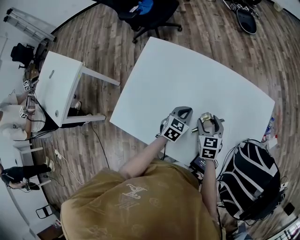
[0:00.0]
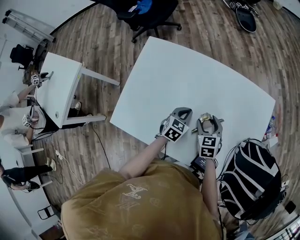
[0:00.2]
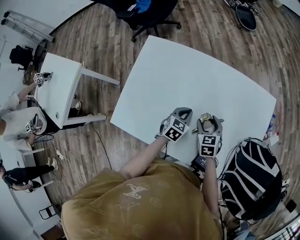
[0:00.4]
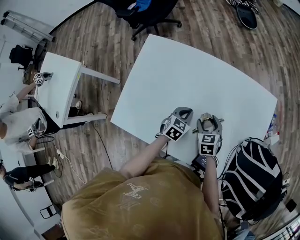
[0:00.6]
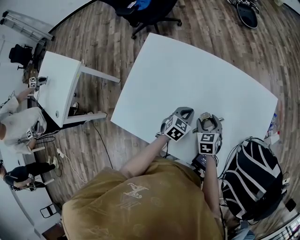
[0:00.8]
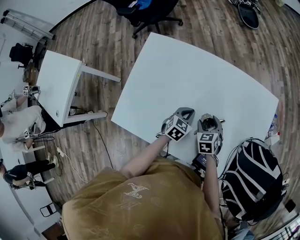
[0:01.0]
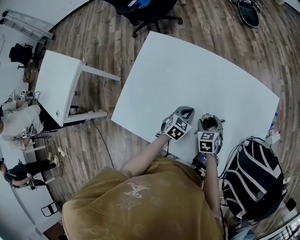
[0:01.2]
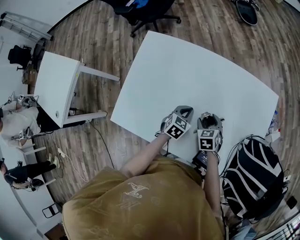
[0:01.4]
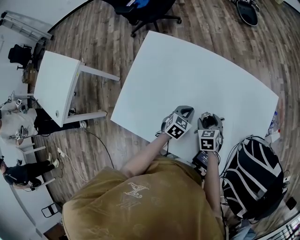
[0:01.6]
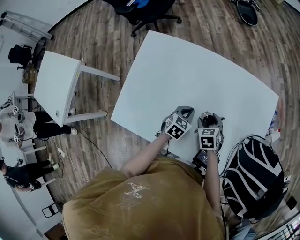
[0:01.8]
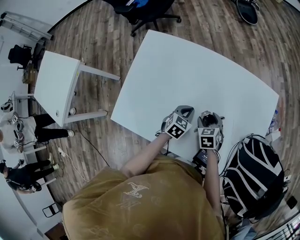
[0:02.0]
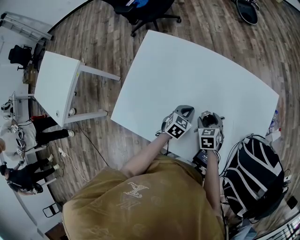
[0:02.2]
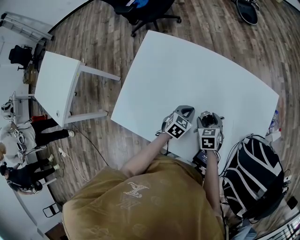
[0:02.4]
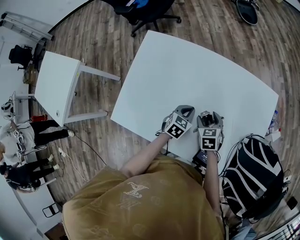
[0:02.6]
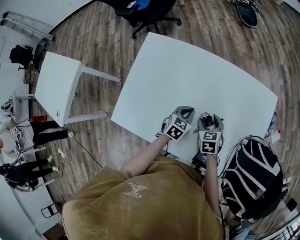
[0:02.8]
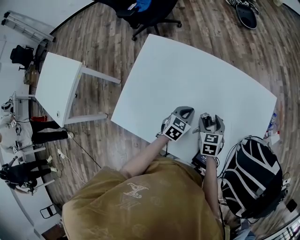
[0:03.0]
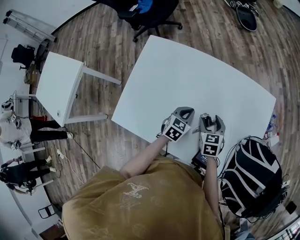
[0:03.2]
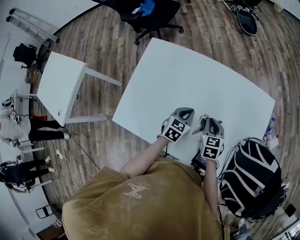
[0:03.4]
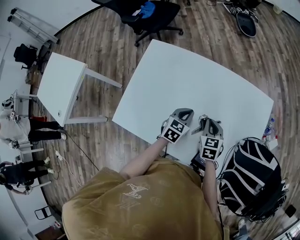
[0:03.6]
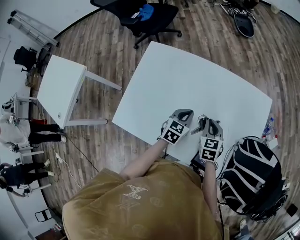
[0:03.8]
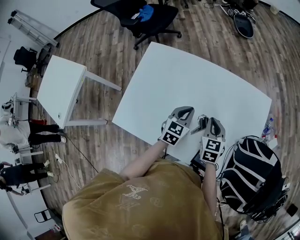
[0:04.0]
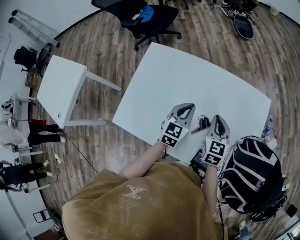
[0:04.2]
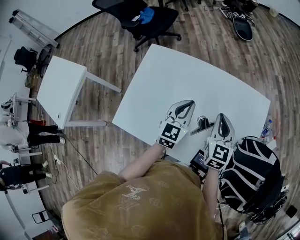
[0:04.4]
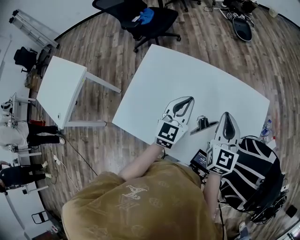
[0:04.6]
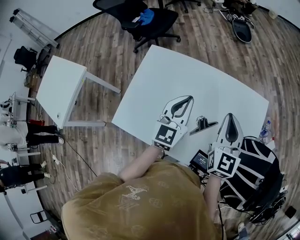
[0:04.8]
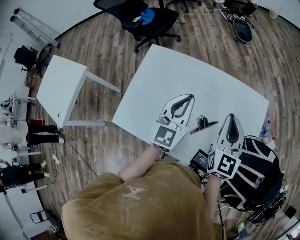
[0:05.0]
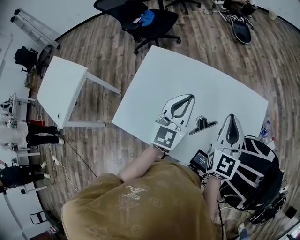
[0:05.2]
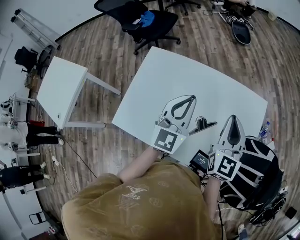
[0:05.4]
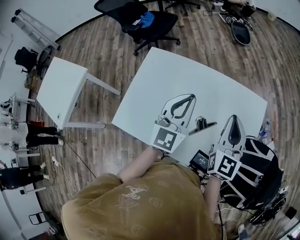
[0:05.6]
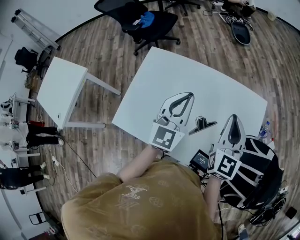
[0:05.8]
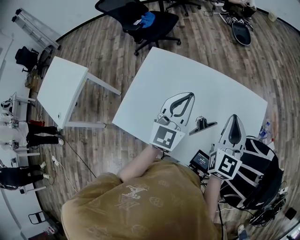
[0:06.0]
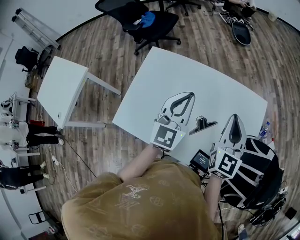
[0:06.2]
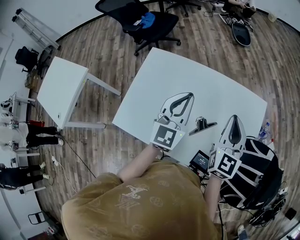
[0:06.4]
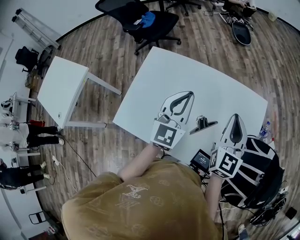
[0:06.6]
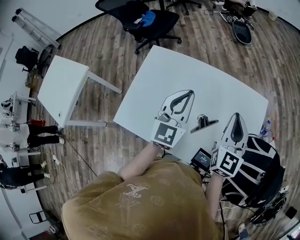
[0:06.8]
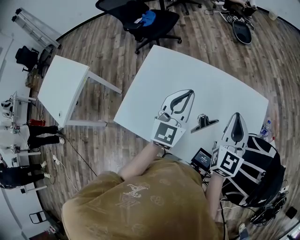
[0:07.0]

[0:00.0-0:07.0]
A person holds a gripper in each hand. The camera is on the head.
0:00.0 to 0:01.4: The right gripper moves downward, approximately 5 cm.
0:01.4 to 0:02.8: The grippers stay close to where they were, moving slightly.
0:02.8 to 0:04.2: Both grippers travel together upward, about 15 cm. The left gripper rotates approximately 20 degrees. The right gripper turns by about 30 degrees, and closes.
0:04.2 to 0:05.6: Both grippers travel together upward, some 15 cm. The left gripper swivels roughly 20 degrees. The right gripper swivels some 20 degrees.
0:05.6 to 0:07.0: The grippers stay close to where they were, moving slightly.

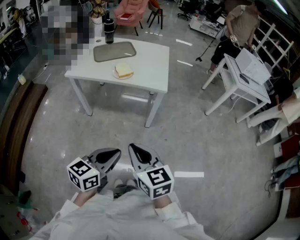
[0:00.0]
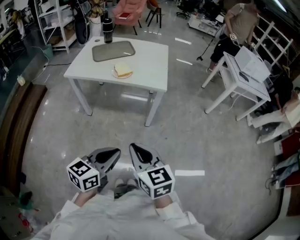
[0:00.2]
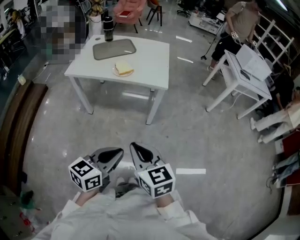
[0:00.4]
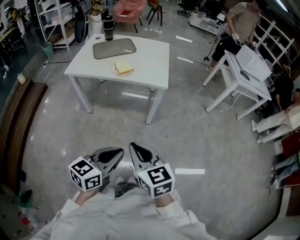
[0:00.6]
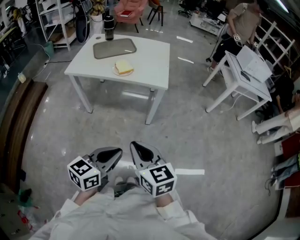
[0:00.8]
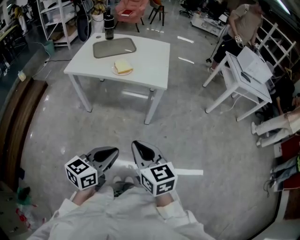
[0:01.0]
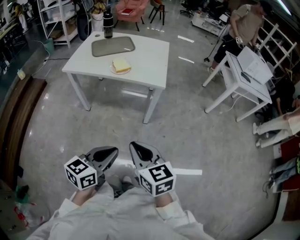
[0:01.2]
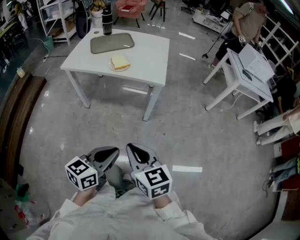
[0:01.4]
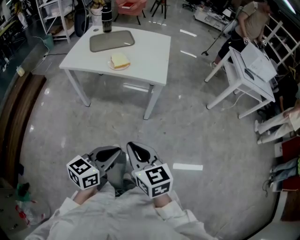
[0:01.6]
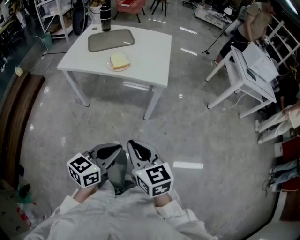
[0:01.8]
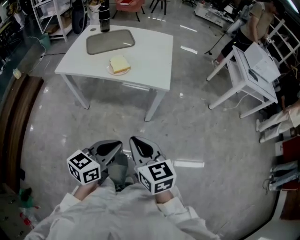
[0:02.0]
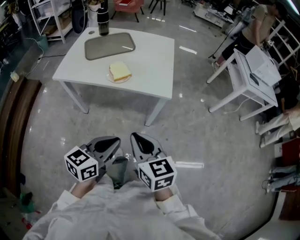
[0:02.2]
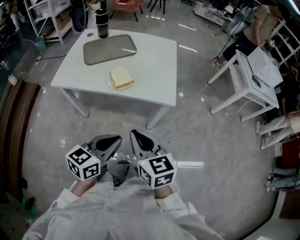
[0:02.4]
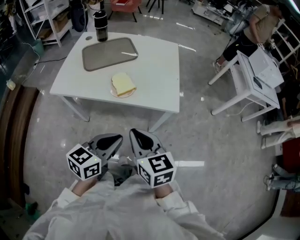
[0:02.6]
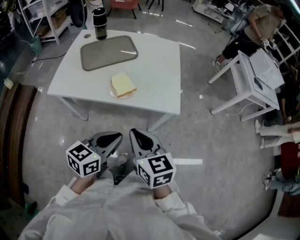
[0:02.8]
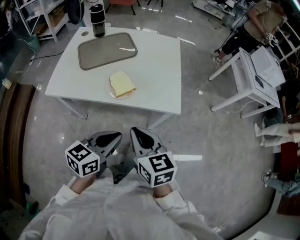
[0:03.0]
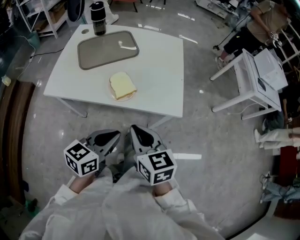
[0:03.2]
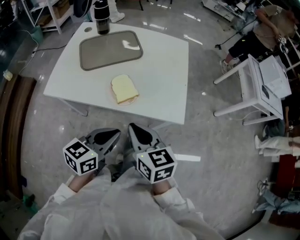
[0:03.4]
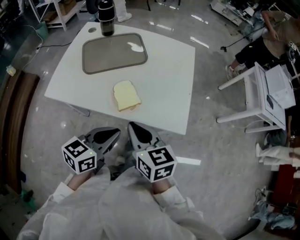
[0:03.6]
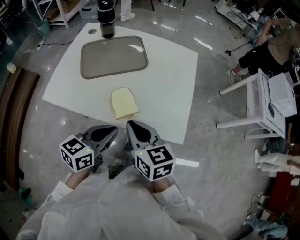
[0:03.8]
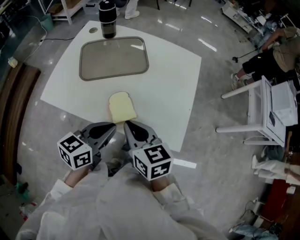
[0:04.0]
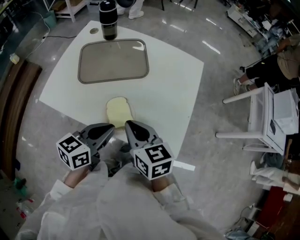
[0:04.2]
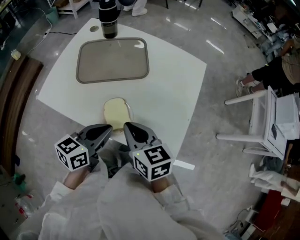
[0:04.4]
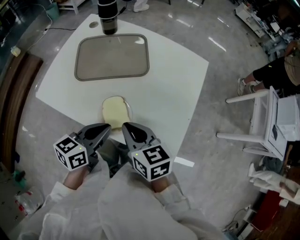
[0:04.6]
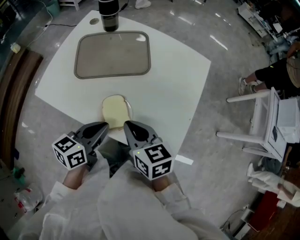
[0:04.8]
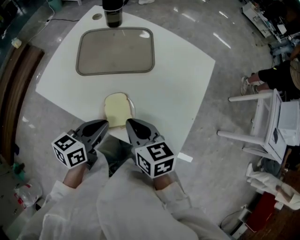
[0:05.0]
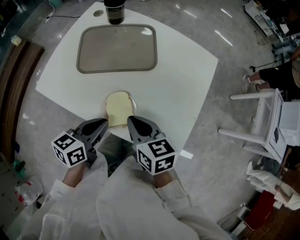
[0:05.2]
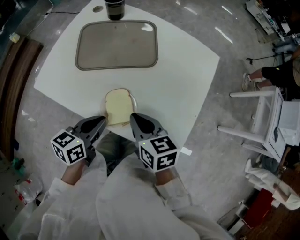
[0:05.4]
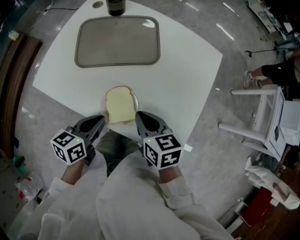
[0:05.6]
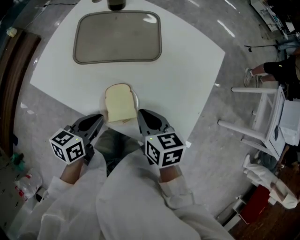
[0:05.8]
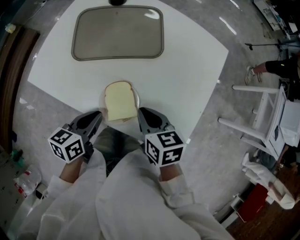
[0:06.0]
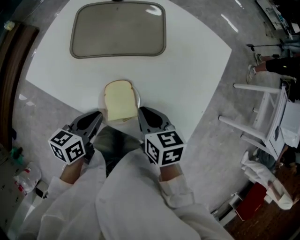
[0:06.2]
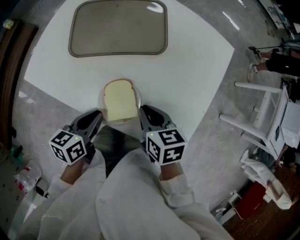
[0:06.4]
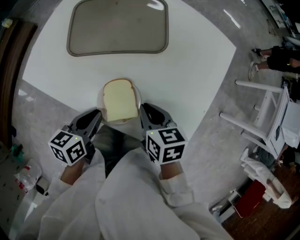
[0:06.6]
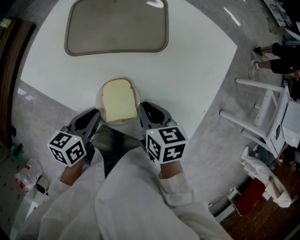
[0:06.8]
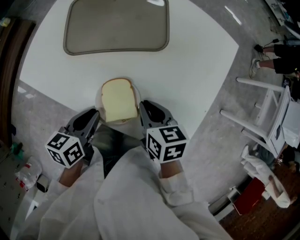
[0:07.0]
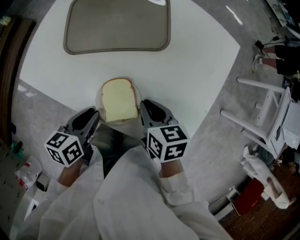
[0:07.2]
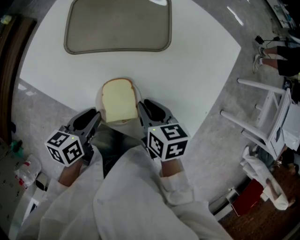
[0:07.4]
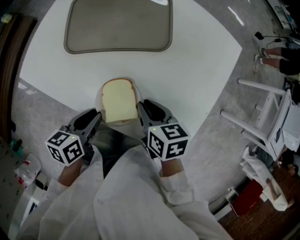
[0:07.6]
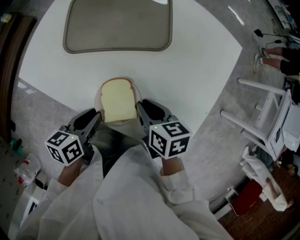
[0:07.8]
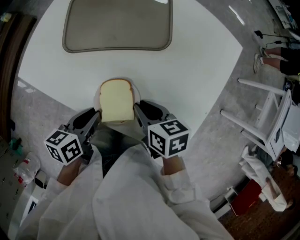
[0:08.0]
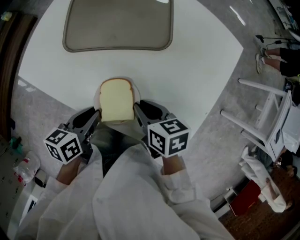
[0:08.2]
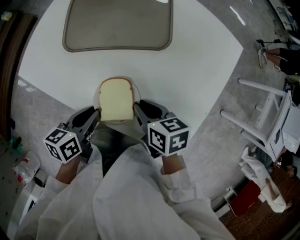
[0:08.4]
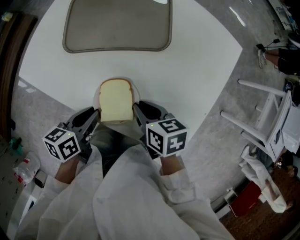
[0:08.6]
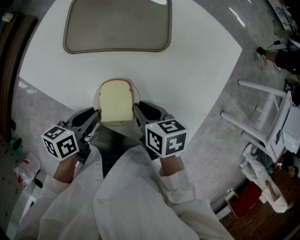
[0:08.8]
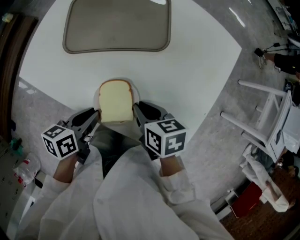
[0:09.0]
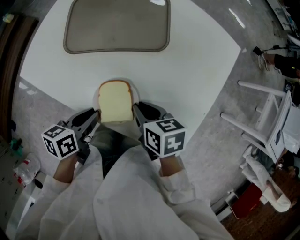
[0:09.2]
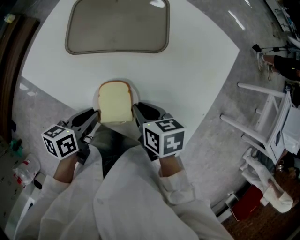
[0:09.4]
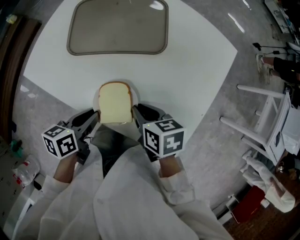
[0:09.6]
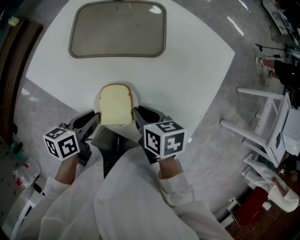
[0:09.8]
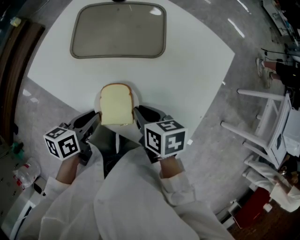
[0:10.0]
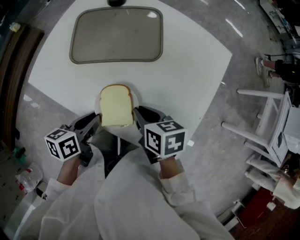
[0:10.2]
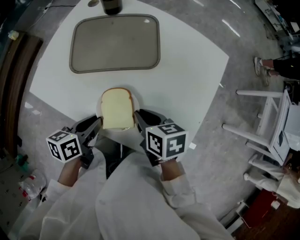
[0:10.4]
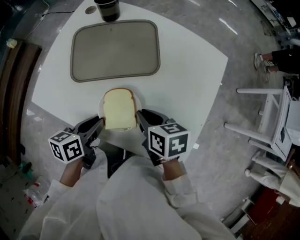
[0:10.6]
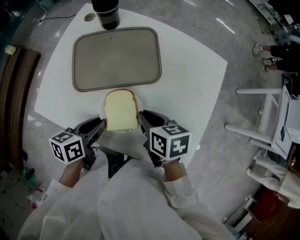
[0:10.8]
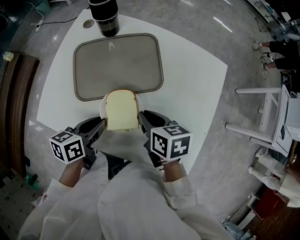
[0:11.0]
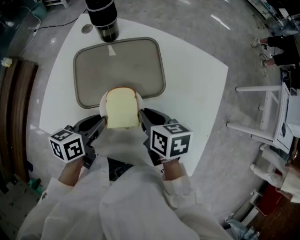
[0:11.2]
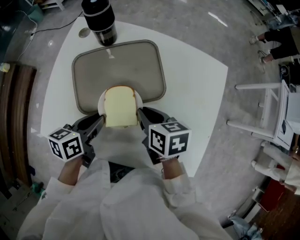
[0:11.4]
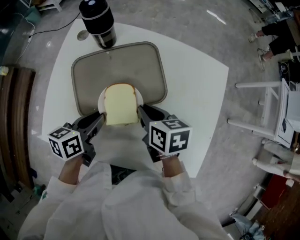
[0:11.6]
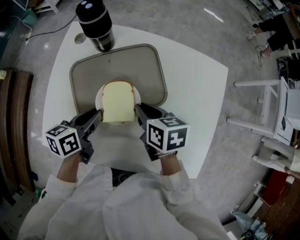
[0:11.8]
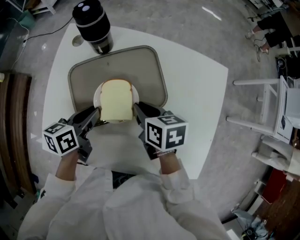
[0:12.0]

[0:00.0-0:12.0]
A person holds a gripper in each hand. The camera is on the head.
0:00.0 to 0:01.6: The right gripper changes place by about 5 cm, while the left gripper moves roughly 5 cm.
0:01.6 to 0:03.0: Both grippers move forward and to the left, about 30 cm.
0:03.0 to 0:04.4: Both grippers travel together forward, roughly 20 cm. The right gripper rotates roughly 20 degrees.
0:04.4 to 0:06.0: The left gripper goes roughly 10 cm downward and to the left. Meanwhile the right gripper shifts roughly 10 cm downward.
0:06.0 to 0:10.4: The grippers stay close to where they were, moving slightly.
0:10.4 to 0:12.0: The two grippers go roughly 20 cm forward.

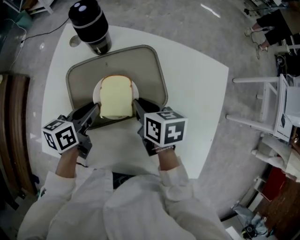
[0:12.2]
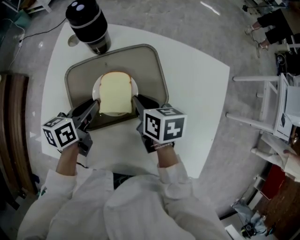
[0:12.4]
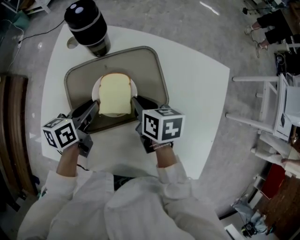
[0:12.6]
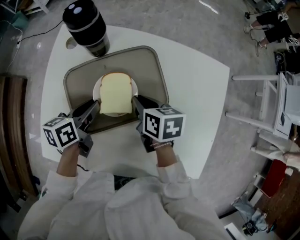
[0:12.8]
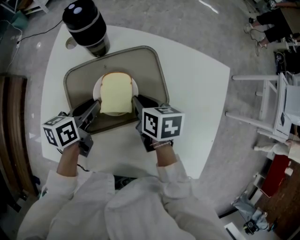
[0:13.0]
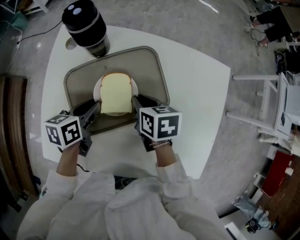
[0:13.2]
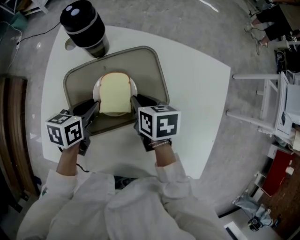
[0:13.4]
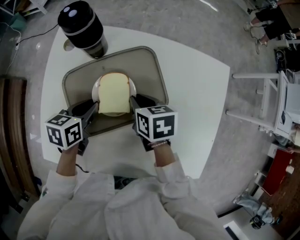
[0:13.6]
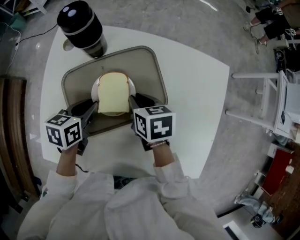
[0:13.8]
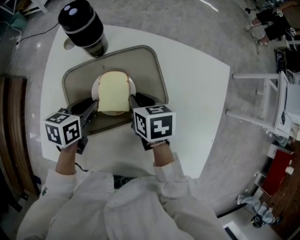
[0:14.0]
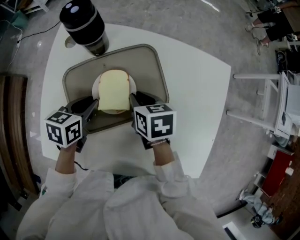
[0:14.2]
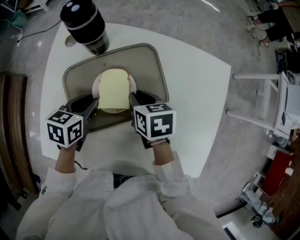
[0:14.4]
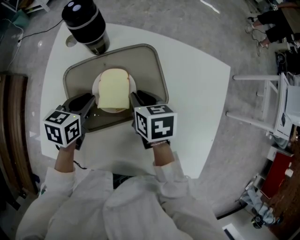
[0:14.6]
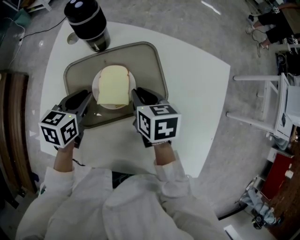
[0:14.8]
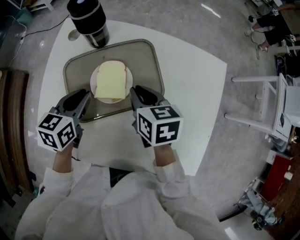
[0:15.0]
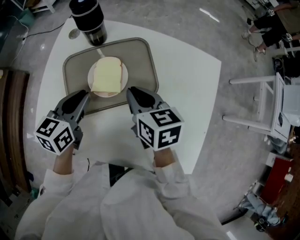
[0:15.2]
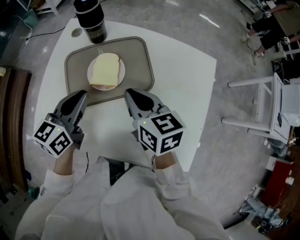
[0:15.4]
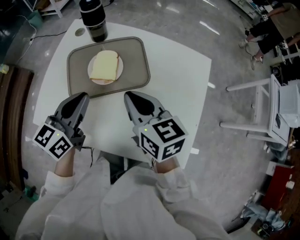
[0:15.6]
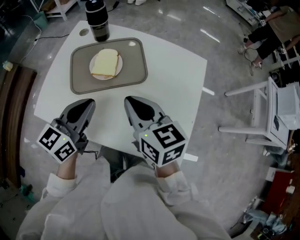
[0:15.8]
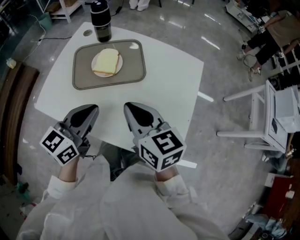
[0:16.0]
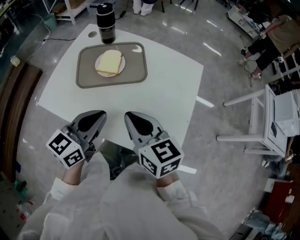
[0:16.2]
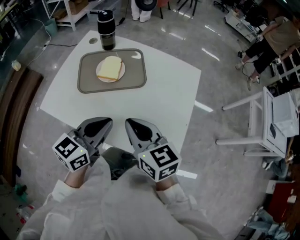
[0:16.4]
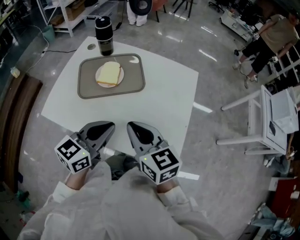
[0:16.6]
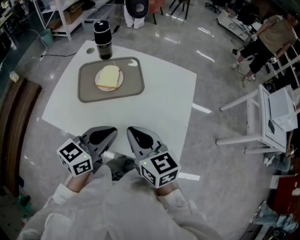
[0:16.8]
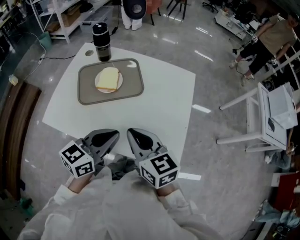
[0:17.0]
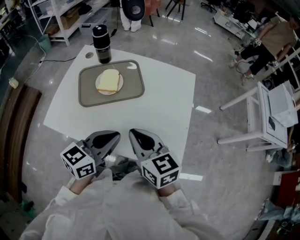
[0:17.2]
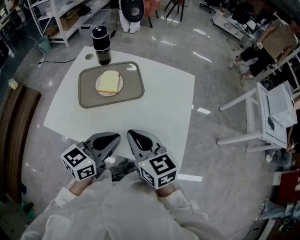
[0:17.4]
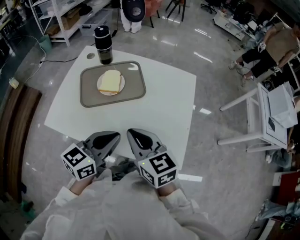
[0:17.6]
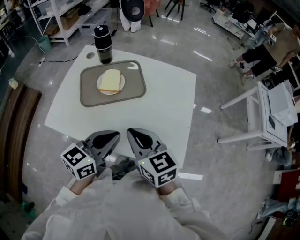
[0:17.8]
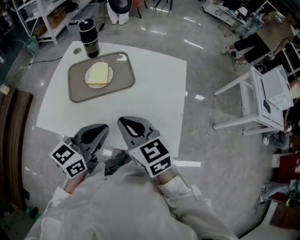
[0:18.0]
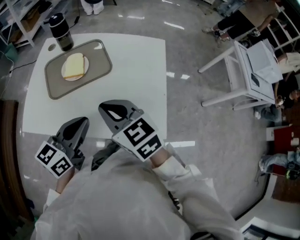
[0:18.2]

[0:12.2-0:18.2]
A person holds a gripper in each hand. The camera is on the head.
0:12.2 to 0:13.8: The grippers move only a little.
0:13.8 to 0:15.2: The grippers both shift upward by roughly 10 cm. The right gripper swivels some 20 degrees; the left gripper changes its angle by some 20 degrees.
0:15.2 to 0:16.6: The left gripper goes some 30 cm backward, to the right and upward, and turns by approximately 20 degrees; the right gripper heads backward and upward, covering about 25 cm, and rotates about 20 degrees.
0:16.6 to 0:18.2: The grippers move only a little.
